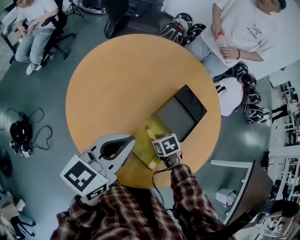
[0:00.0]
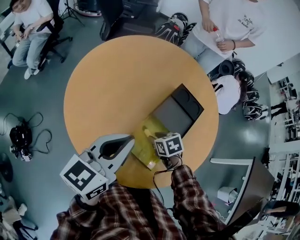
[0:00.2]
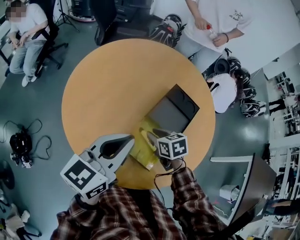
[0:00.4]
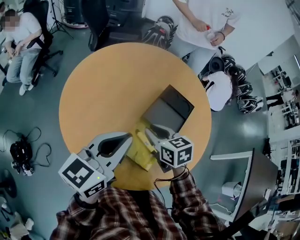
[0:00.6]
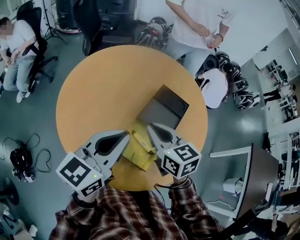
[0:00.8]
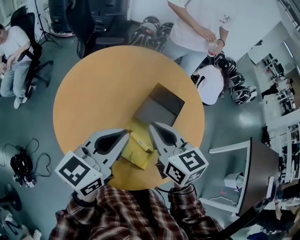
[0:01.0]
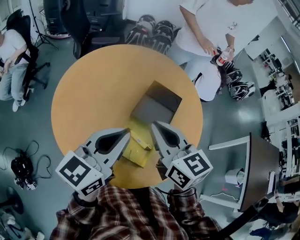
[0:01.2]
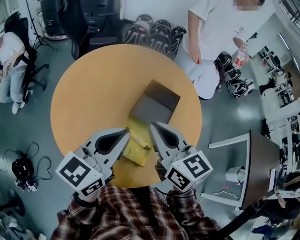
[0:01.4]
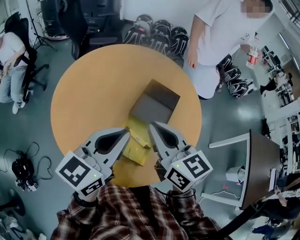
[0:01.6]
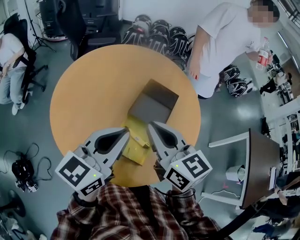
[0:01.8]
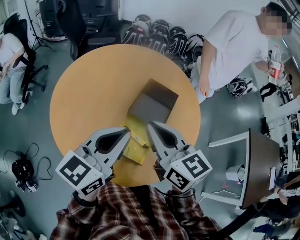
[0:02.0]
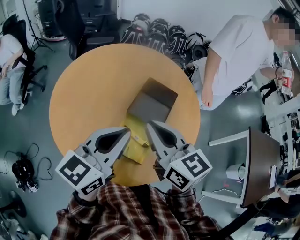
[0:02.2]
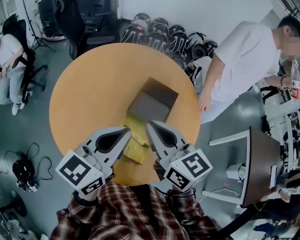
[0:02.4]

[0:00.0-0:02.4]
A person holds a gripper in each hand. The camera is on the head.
0:00.0 to 0:01.2: The left gripper goes roughly 10 cm to the right and upward; the right gripper heads upward, covering about 35 cm, angles its fingers upward, by roughly 60 degrees, and closes its fingers.
0:01.2 to 0:02.4: The grippers move only a little.

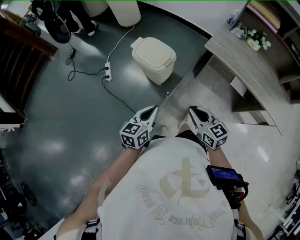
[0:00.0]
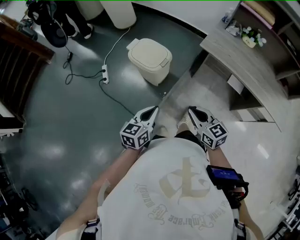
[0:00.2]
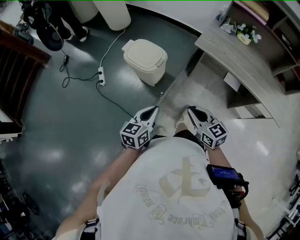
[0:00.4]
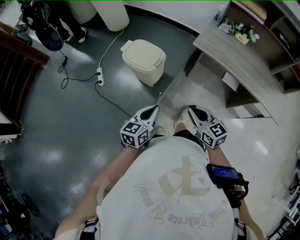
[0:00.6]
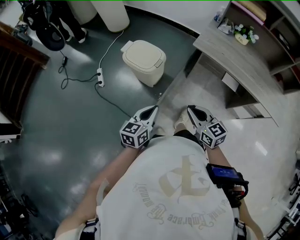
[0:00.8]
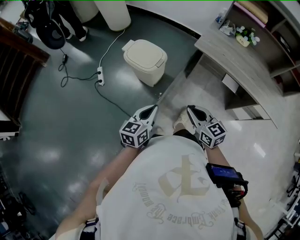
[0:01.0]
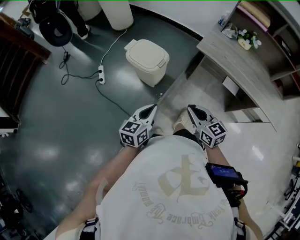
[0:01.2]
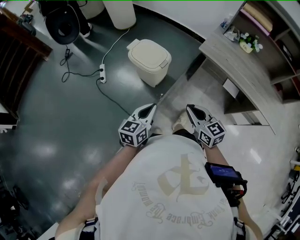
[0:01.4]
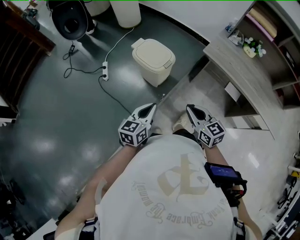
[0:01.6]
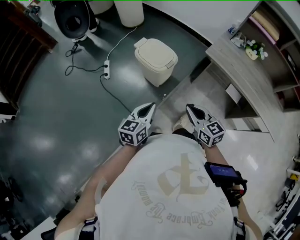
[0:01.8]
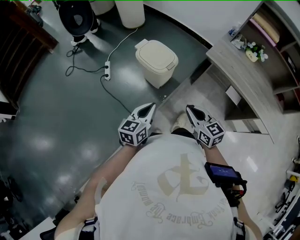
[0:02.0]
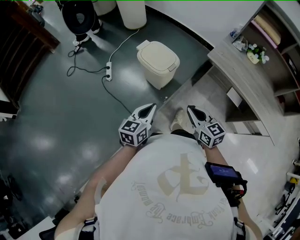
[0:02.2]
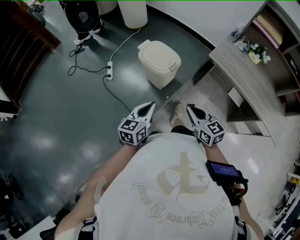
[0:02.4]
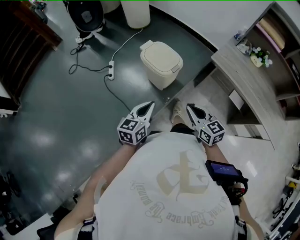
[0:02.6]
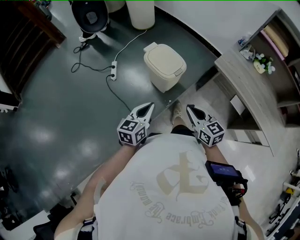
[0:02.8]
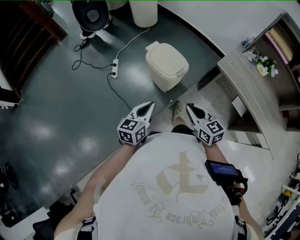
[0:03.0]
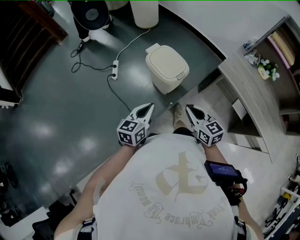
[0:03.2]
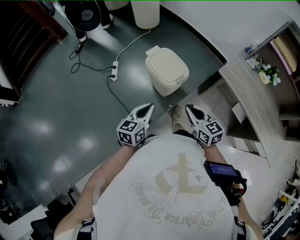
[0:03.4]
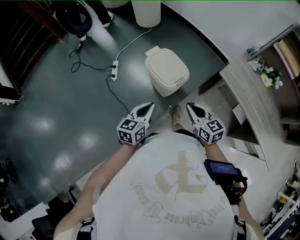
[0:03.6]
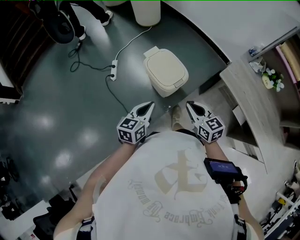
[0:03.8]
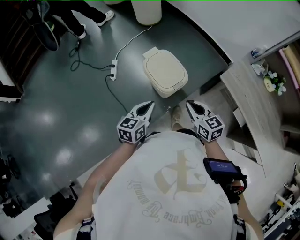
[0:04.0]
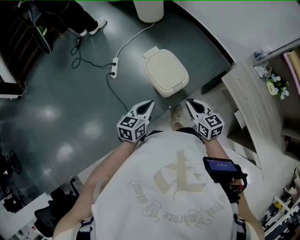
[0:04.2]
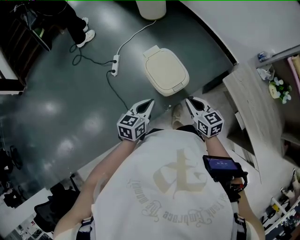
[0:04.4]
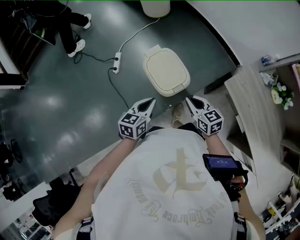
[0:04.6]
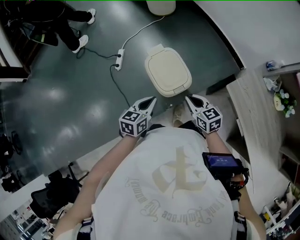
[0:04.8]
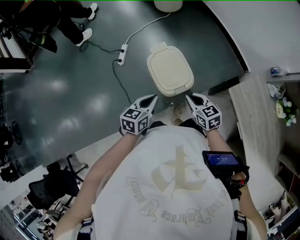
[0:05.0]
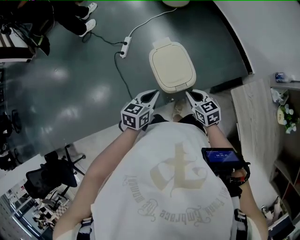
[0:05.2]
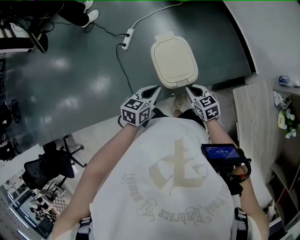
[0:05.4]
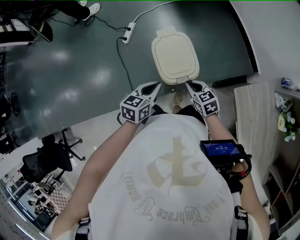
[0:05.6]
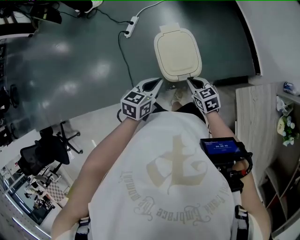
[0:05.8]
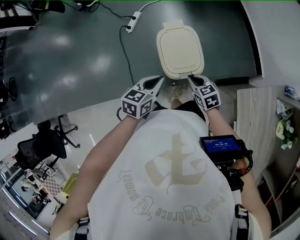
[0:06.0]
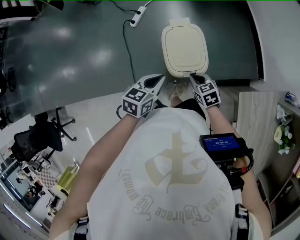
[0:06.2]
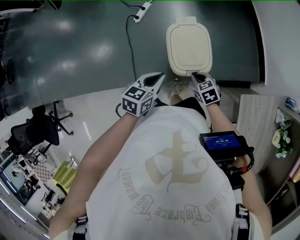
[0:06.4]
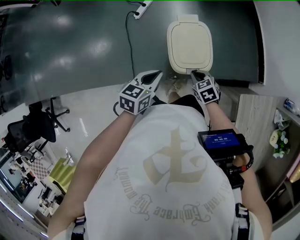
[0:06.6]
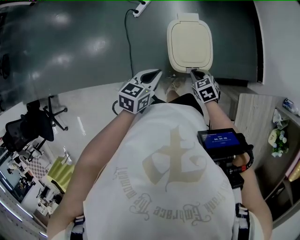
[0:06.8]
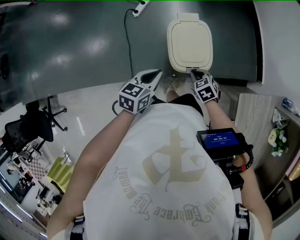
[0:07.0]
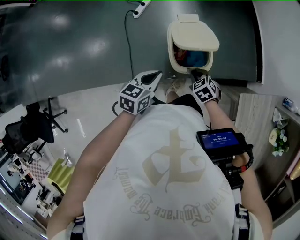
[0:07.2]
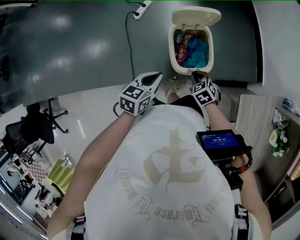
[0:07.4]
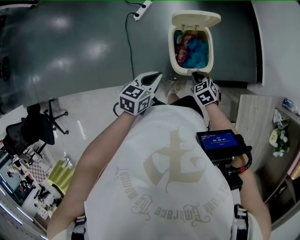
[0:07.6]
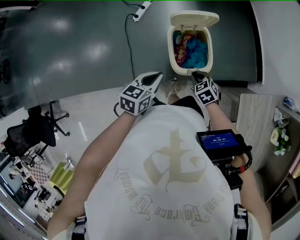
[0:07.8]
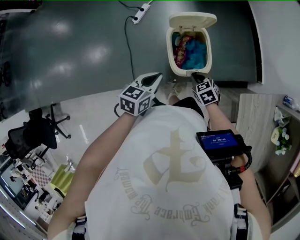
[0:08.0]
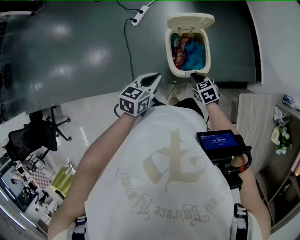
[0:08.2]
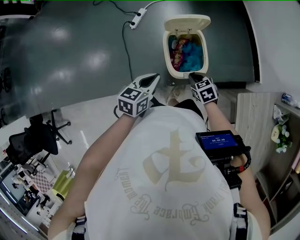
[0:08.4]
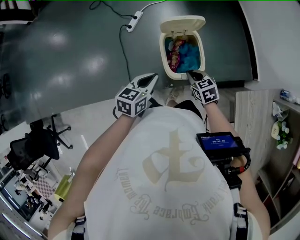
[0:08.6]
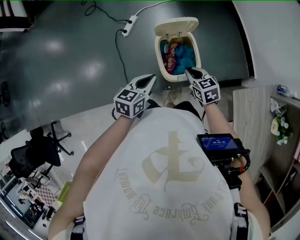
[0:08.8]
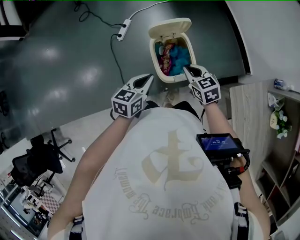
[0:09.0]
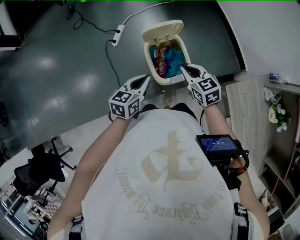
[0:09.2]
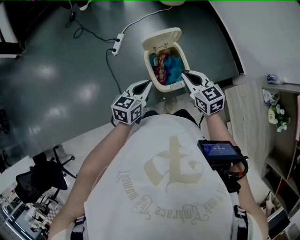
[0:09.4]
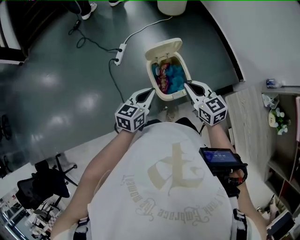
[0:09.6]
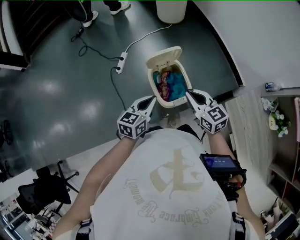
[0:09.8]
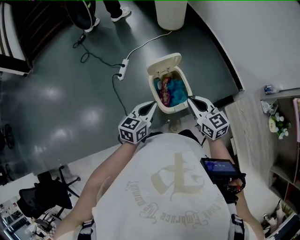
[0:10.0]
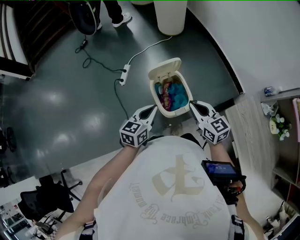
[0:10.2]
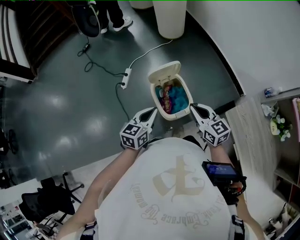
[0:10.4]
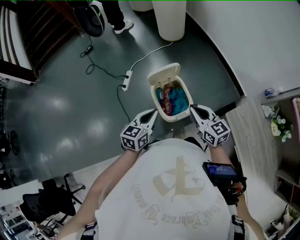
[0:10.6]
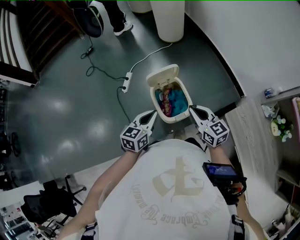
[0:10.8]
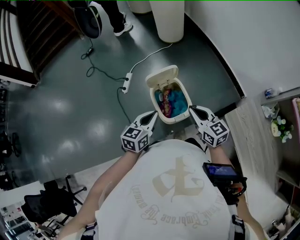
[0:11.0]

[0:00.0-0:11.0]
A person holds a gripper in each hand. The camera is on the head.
0:00.0 to 0:01.6: The grippers move only a little.
0:01.6 to 0:03.2: The right gripper travels forward by about 10 cm. The left gripper is displaced forward and to the left by about 10 cm.
0:03.2 to 0:04.8: The left gripper is displaced forward and to the right by some 20 cm. Meanwhile the right gripper moves forward, about 20 cm.
0:04.8 to 0:06.2: The right gripper shifts about 15 cm downward, and turns by some 30 degrees.
0:07.8 to 0:09.4: The right gripper shifts approximately 20 cm upward, and tips its fingers upward by approximately 30 degrees; the left gripper travels forward by about 5 cm.
0:09.4 to 0:11.0: The right gripper ends up some 5 cm from where it was.

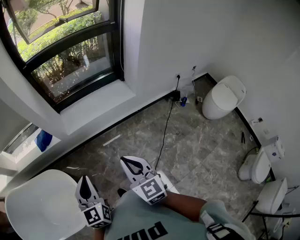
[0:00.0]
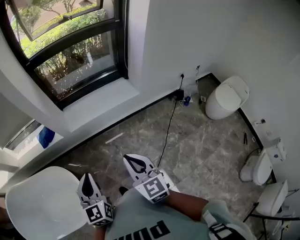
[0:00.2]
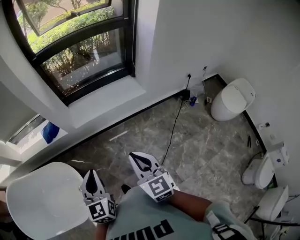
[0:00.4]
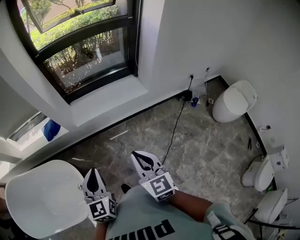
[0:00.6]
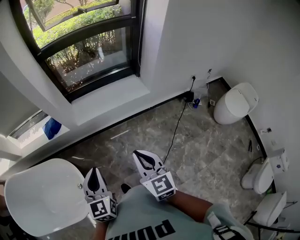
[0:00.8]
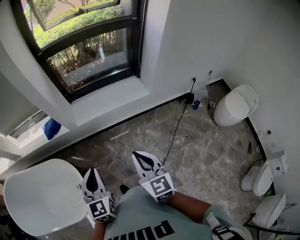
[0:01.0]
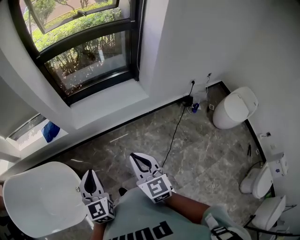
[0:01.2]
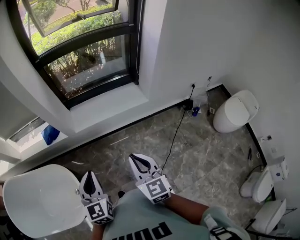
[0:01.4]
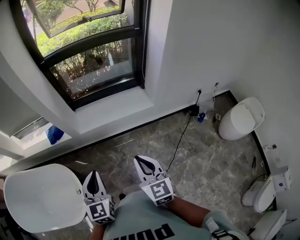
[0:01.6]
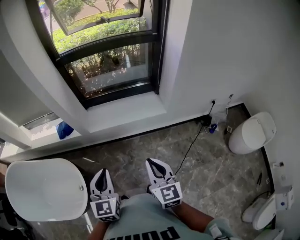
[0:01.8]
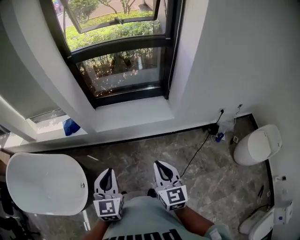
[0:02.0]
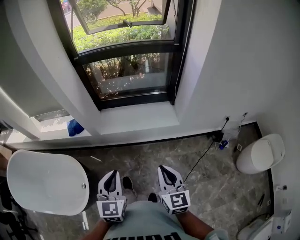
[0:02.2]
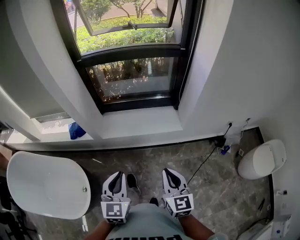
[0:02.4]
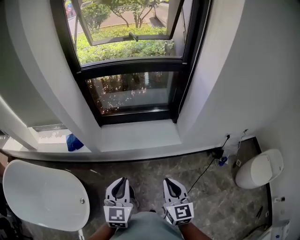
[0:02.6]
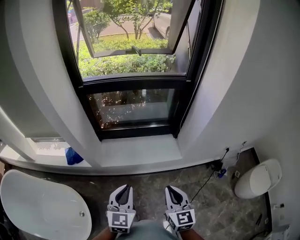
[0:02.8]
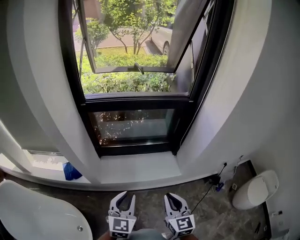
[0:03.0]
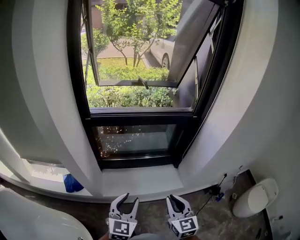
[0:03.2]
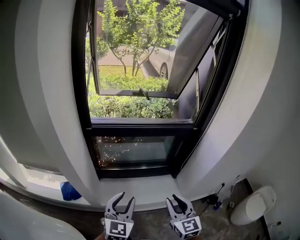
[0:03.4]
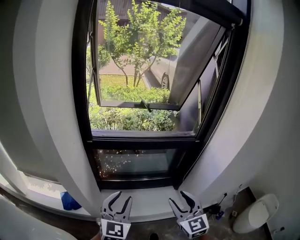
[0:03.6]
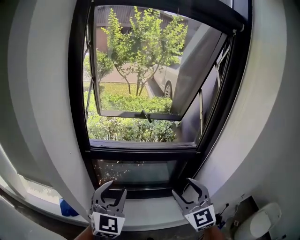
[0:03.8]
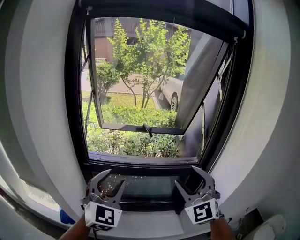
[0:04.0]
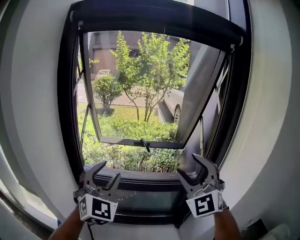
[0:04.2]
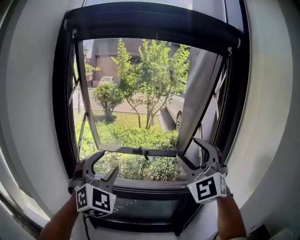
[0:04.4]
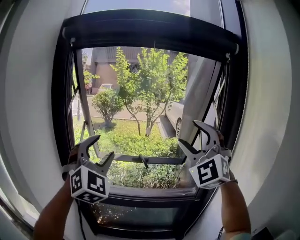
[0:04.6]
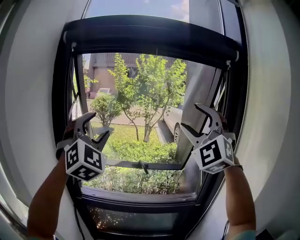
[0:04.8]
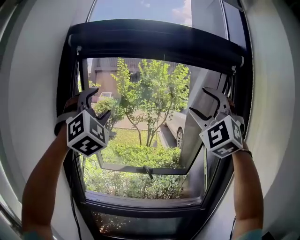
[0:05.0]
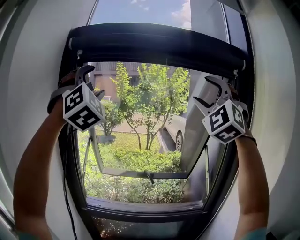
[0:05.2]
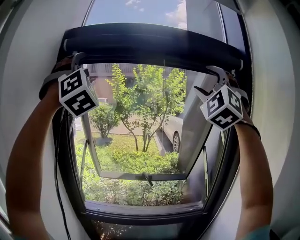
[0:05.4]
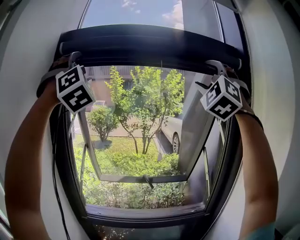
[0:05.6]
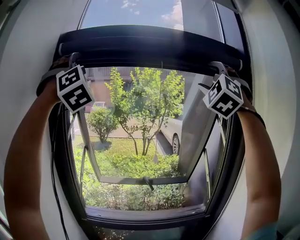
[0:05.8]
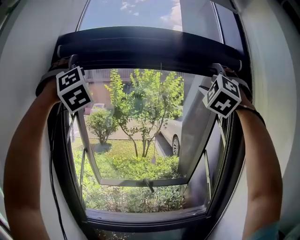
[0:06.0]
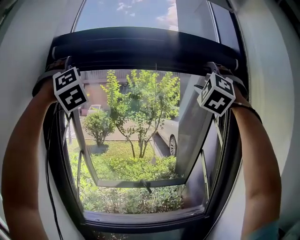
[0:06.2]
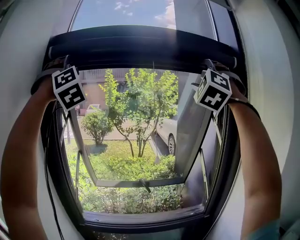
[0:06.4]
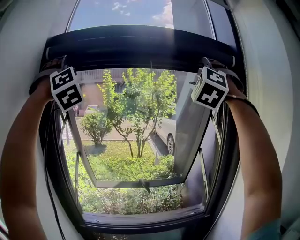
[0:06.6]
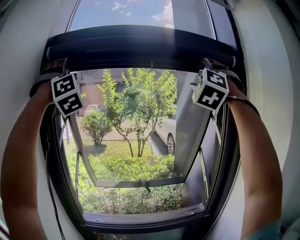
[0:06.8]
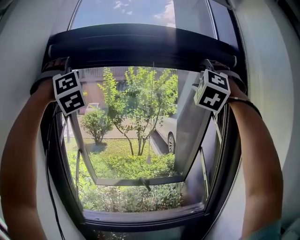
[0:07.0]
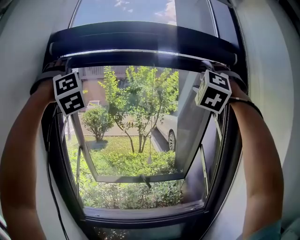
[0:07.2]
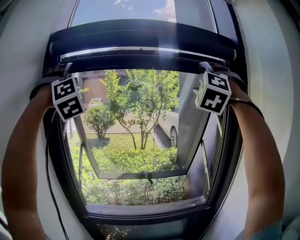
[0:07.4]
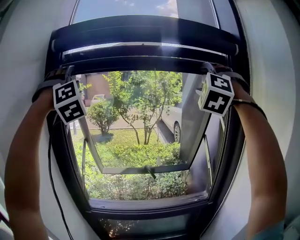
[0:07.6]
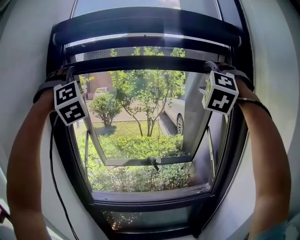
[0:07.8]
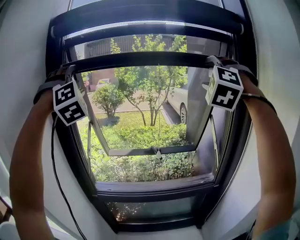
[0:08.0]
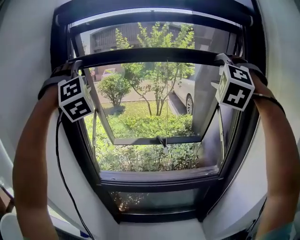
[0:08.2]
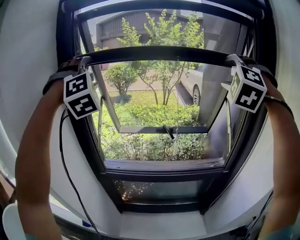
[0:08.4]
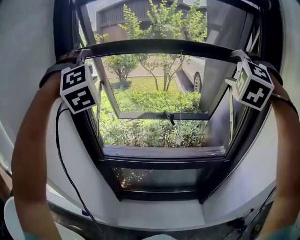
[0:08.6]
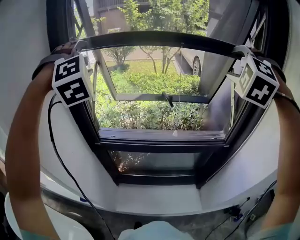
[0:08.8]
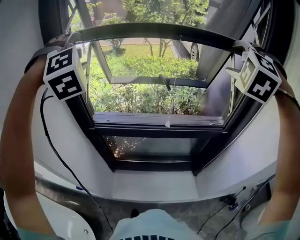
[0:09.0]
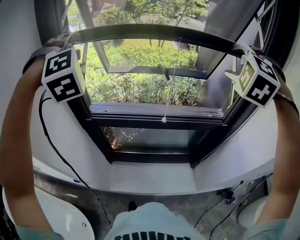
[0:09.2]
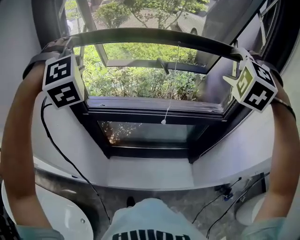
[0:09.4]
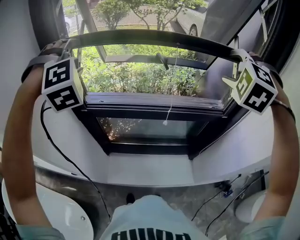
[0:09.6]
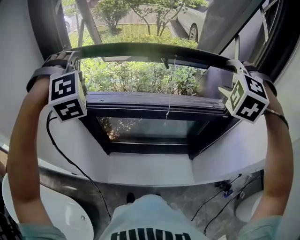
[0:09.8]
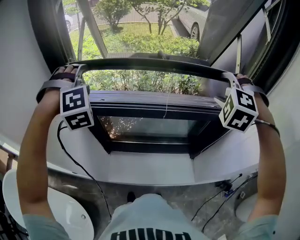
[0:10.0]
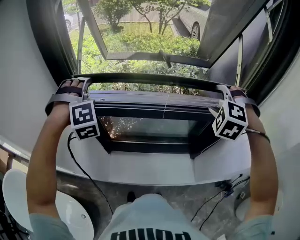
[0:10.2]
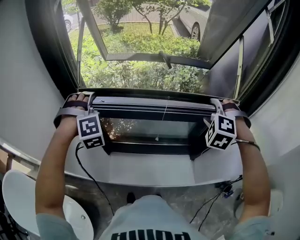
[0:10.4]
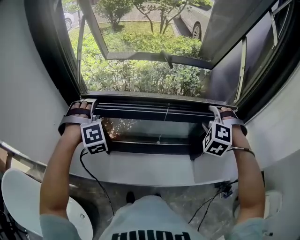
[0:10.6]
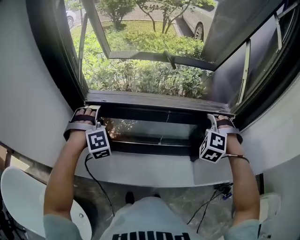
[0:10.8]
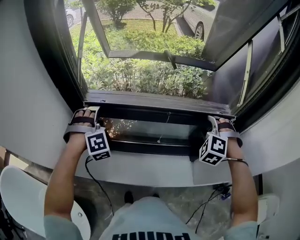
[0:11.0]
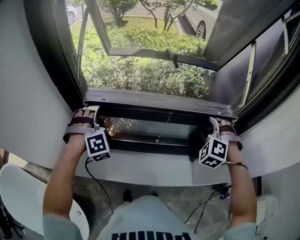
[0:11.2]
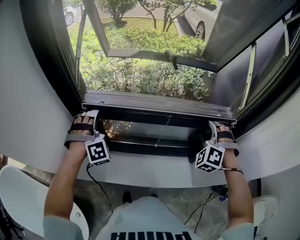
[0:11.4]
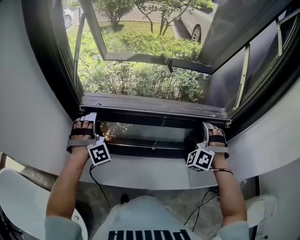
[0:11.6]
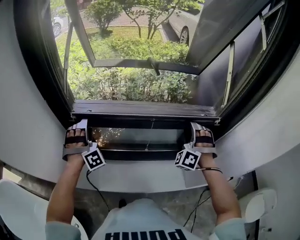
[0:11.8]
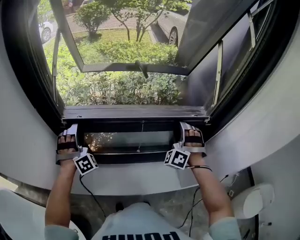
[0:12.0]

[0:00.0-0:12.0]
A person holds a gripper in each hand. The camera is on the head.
0:00.0 to 0:01.6: The right gripper travels to the right and forward by some 10 cm, while the left gripper goes roughly 5 cm to the right.
0:01.6 to 0:03.0: Both grippers move forward, some 25 cm.
0:03.0 to 0:04.4: The right gripper shifts some 60 cm upward and forward, twists some 60 degrees counterclockwise, seen from behind, and opens up; the left gripper goes roughly 50 cm forward and upward, twists some 50 degrees clockwise, seen from behind, and opens.
0:04.4 to 0:06.0: Both grippers move upward, some 35 cm. The right gripper turns by approximately 40 degrees, while the left gripper changes its angle by about 40 degrees.
0:06.0 to 0:07.6: The grippers both shift downward by about 5 cm.
0:07.6 to 0:09.0: The two grippers go about 25 cm downward. The left gripper swivels approximately 30 degrees. The right gripper changes its angle by approximately 30 degrees.
0:09.0 to 0:10.4: The grippers both shift downward by approximately 30 cm. The right gripper swivels roughly 20 degrees.
0:10.4 to 0:12.0: Both grippers travel together downward, roughly 10 cm. The right gripper tips its fingers upward by some 30 degrees; the left gripper changes its angle by approximately 20 degrees.
